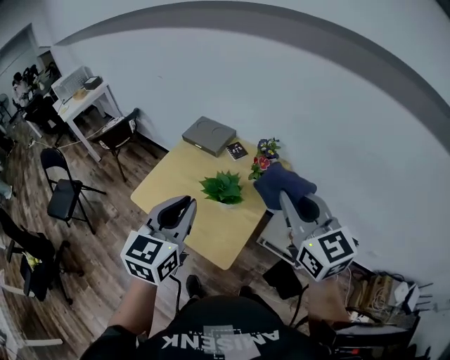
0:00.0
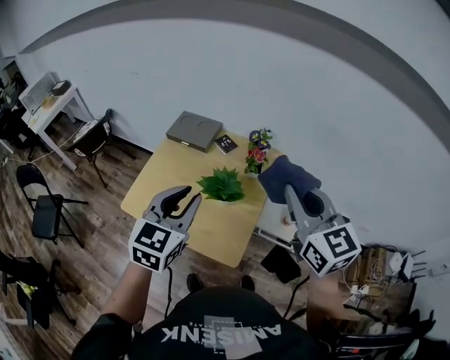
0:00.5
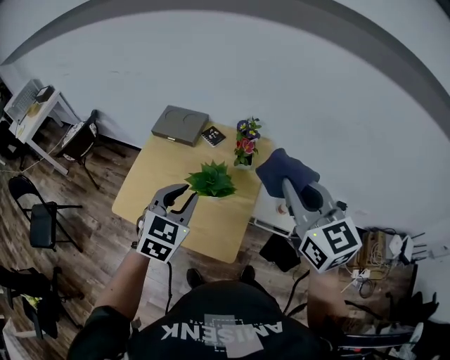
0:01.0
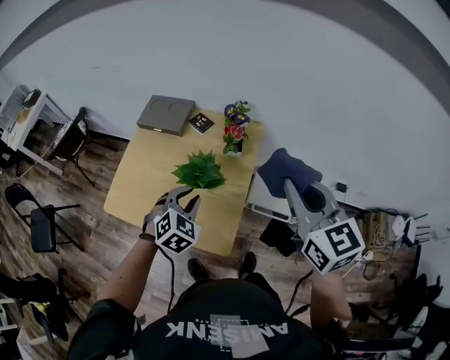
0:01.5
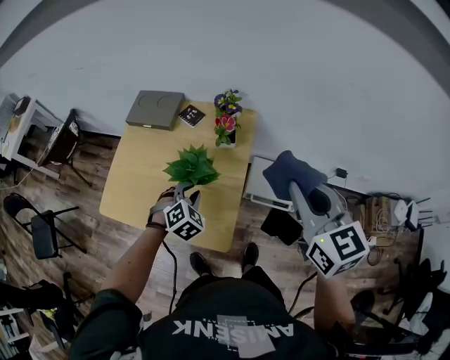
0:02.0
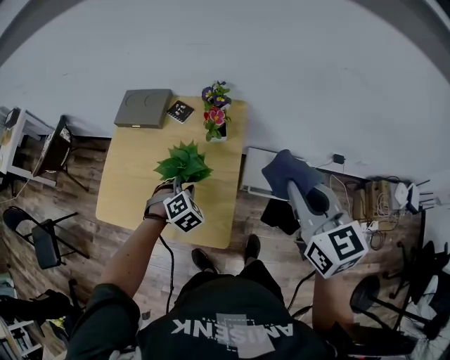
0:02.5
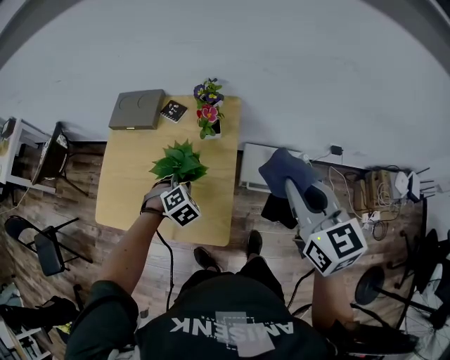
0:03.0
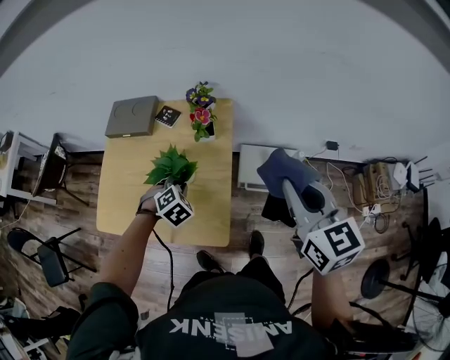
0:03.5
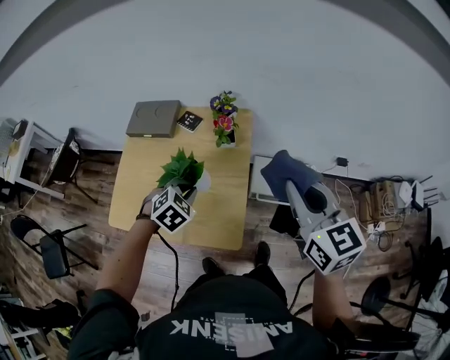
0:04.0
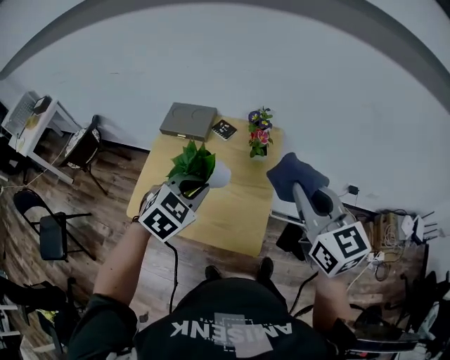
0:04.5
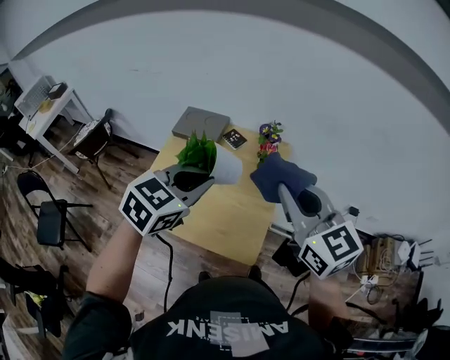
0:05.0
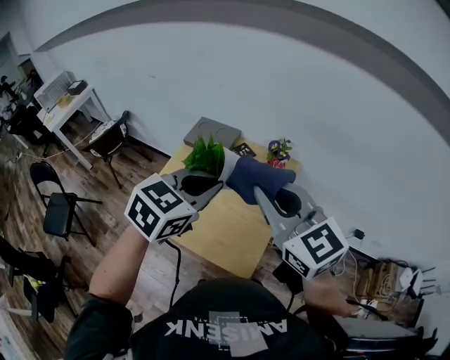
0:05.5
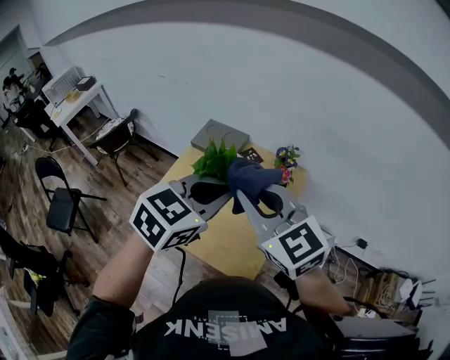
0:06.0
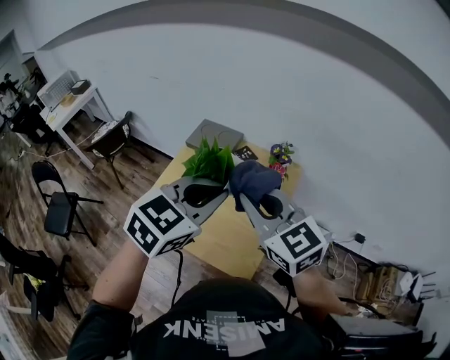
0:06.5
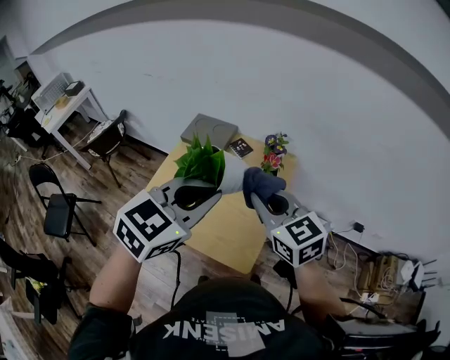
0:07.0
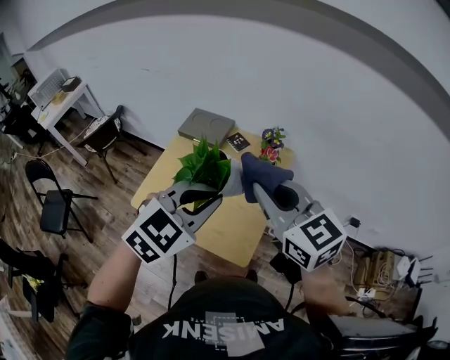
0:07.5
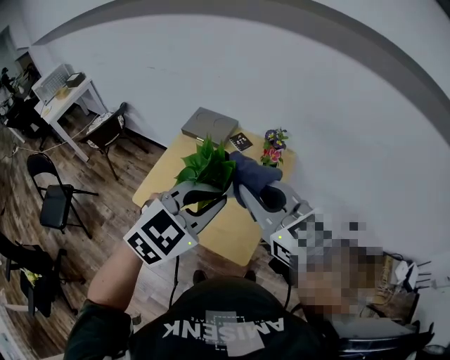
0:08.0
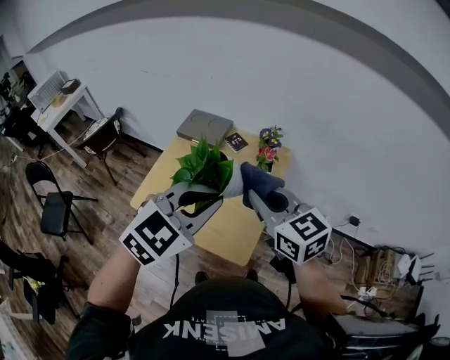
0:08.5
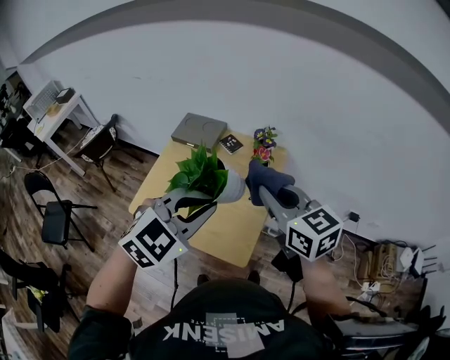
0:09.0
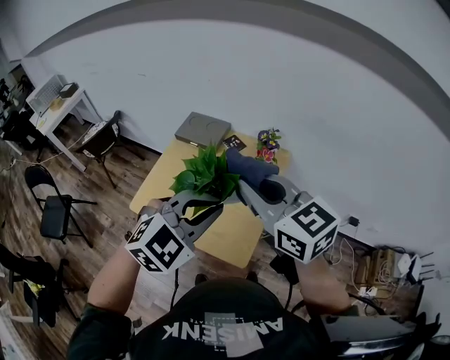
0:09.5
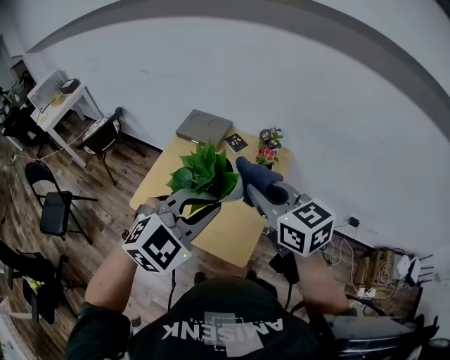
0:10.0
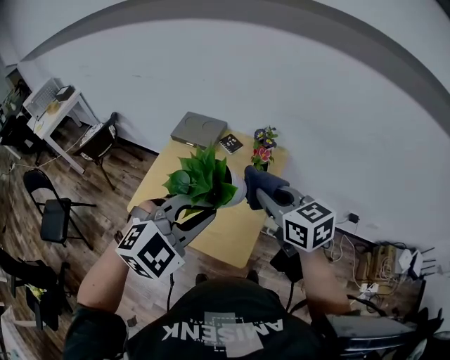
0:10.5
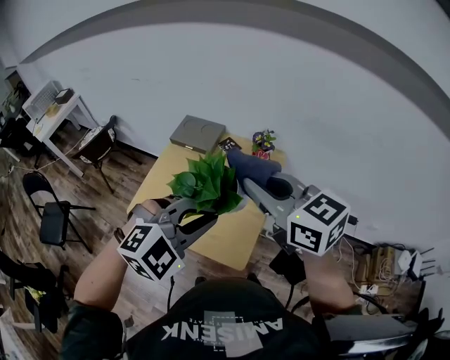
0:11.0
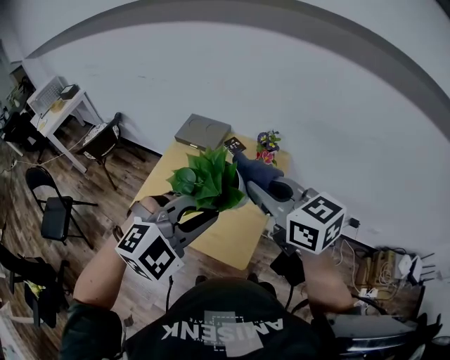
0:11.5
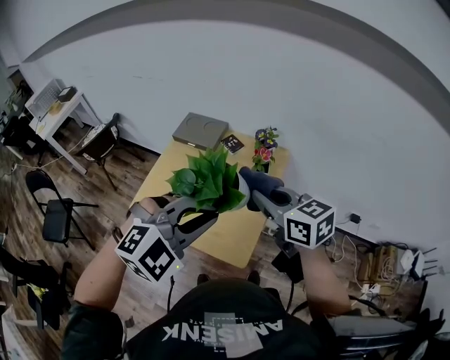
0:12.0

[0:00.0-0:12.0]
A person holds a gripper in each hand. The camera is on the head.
0:00.0 to 0:02.0: The left gripper is displaced downward by roughly 30 cm, and tips its fingers downward by roughly 40 degrees; the right gripper travels downward and to the right by roughly 10 cm, and rotates approximately 20 degrees.
0:02.0 to 0:04.0: The left gripper changes place by roughly 5 cm.
0:04.0 to 0:06.0: The left gripper goes about 25 cm upward, and turns by about 40 degrees. Meanwhile the right gripper is displaced to the left by about 25 cm, and turns by roughly 40 degrees.
0:06.0 to 0:08.0: Both grippers travel together backward, about 5 cm.
0:08.0 to 0:10.0: The right gripper changes place by approximately 5 cm.
0:10.0 to 0:12.0: The right gripper swings up and down, about 10 cm each way, with 2 reversals.

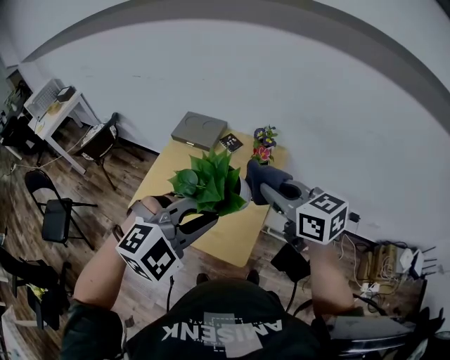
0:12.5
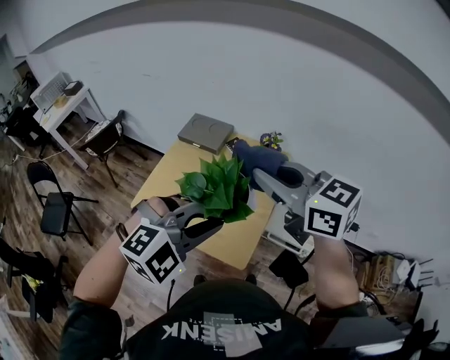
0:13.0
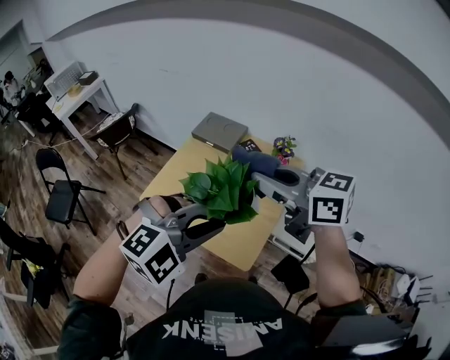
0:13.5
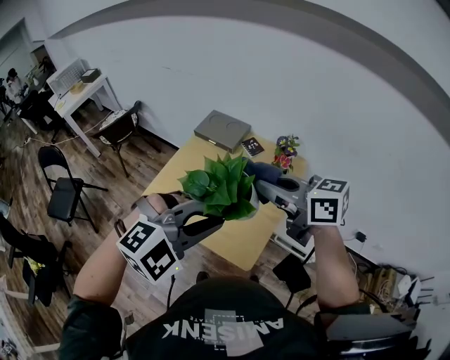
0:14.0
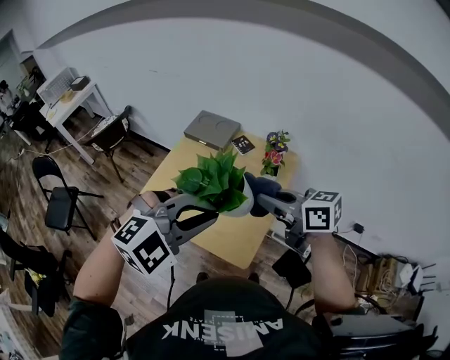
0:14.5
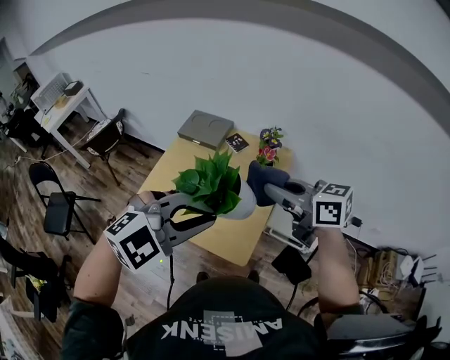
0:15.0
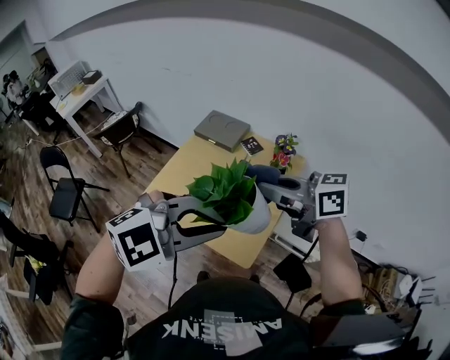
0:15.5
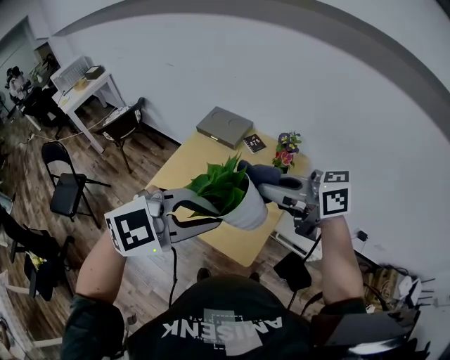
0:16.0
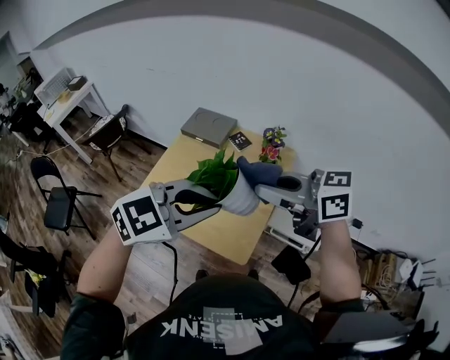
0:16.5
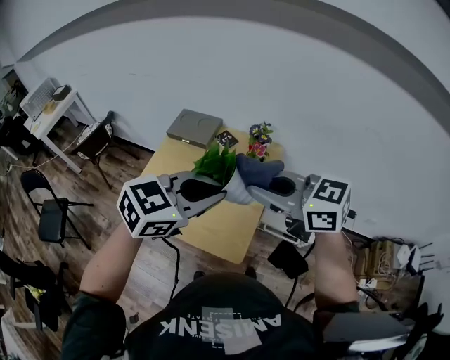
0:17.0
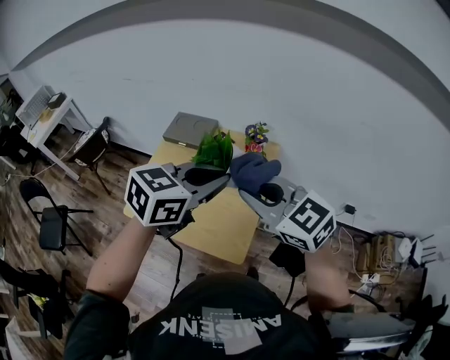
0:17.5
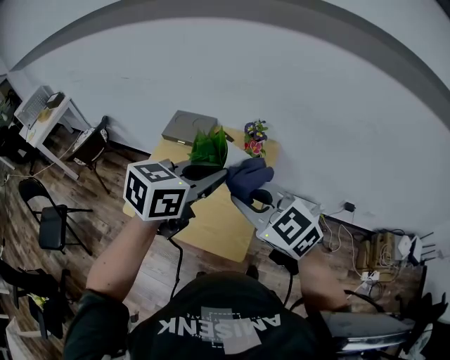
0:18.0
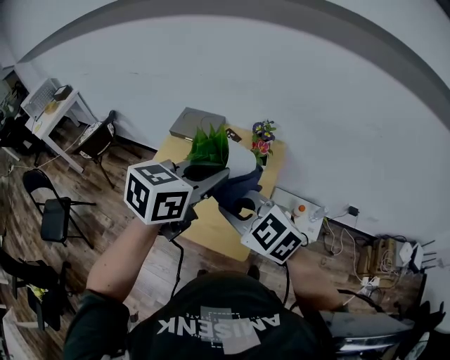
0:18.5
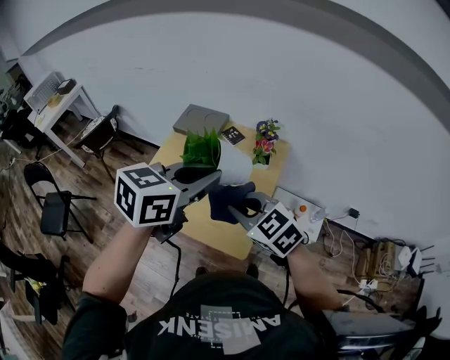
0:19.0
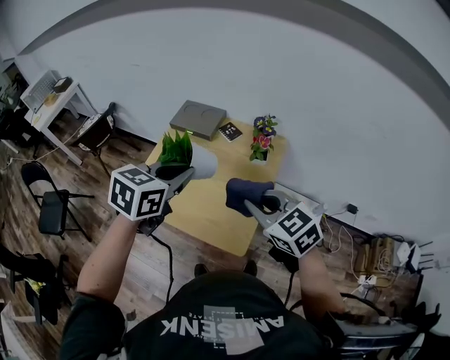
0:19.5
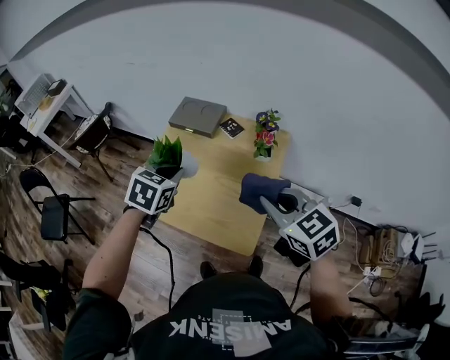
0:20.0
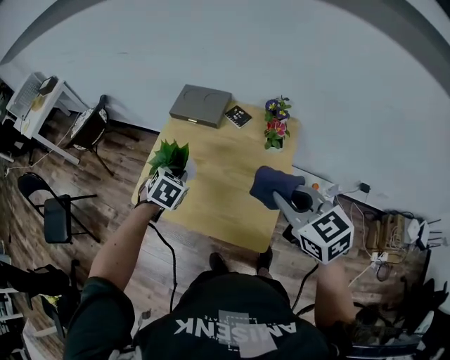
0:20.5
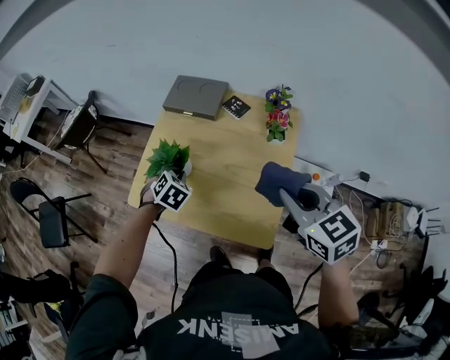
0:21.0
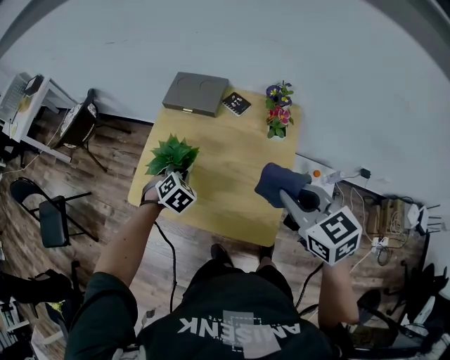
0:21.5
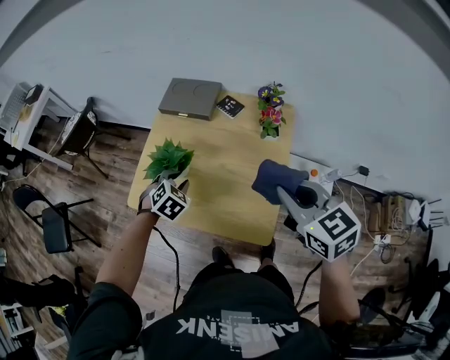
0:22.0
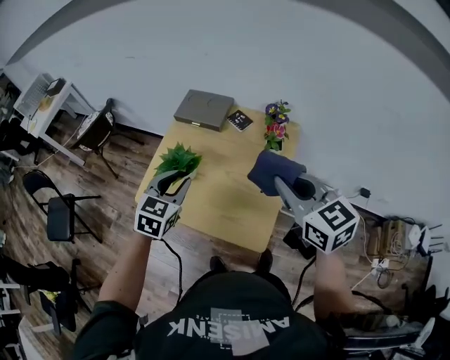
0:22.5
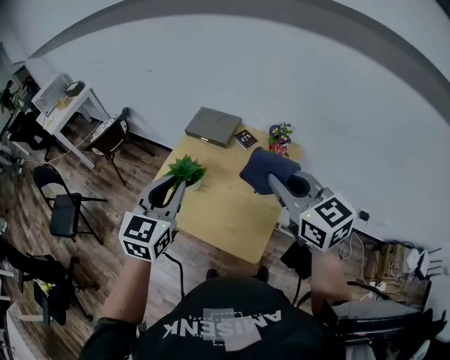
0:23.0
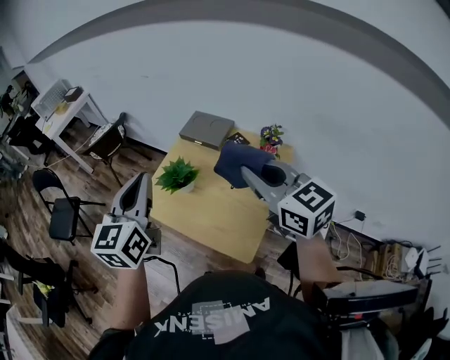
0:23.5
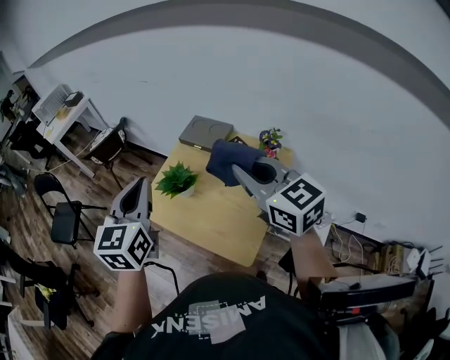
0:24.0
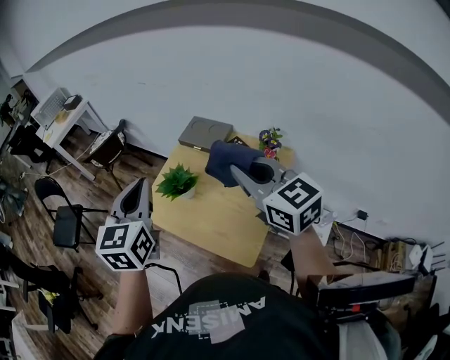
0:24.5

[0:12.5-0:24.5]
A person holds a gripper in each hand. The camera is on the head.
0:12.5 to 0:14.5: The right gripper goes upward and returns, approximately 10 cm each way, and changes its angle by roughly 20 degrees.
0:14.5 to 0:16.5: The left gripper changes its angle by some 30 degrees. Meanwhile the right gripper travels upward by about 10 cm.
0:16.5 to 0:18.5: The right gripper goes about 10 cm downward, and changes its angle by roughly 40 degrees. The left gripper moves approximately 5 cm, and changes its angle by approximately 30 degrees.
0:18.5 to 0:20.5: The right gripper is displaced to the right by some 5 cm, and swivels about 30 degrees. Meanwhile the left gripper shifts about 35 cm downward, to the left and forward, and points its fingers roughly 30 degrees further downward.
0:20.5 to 0:22.5: The left gripper shifts about 10 cm upward and backward, swivels about 30 degrees, and opens up.
0:22.5 to 0:24.5: The left gripper moves upward, roughly 20 cm, swivels approximately 40 degrees, and closes up, while the right gripper heads upward, covering approximately 10 cm.

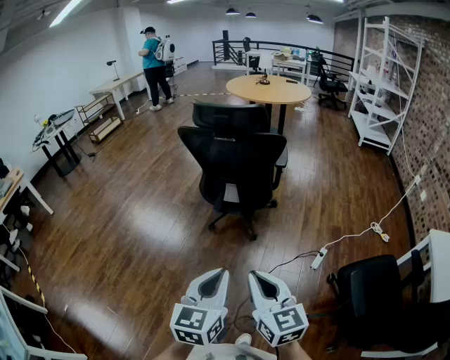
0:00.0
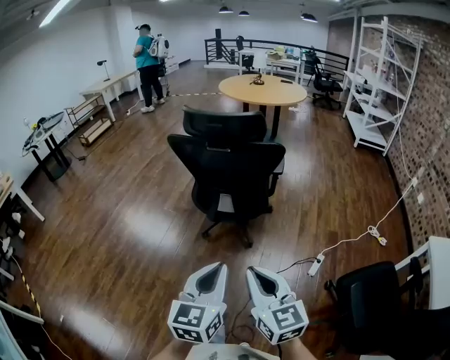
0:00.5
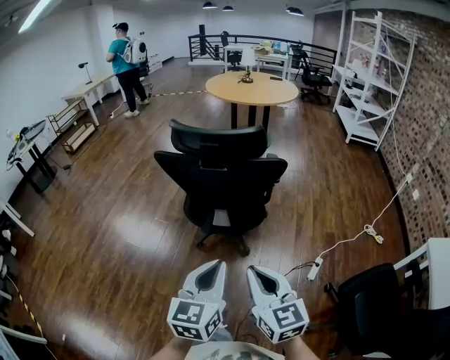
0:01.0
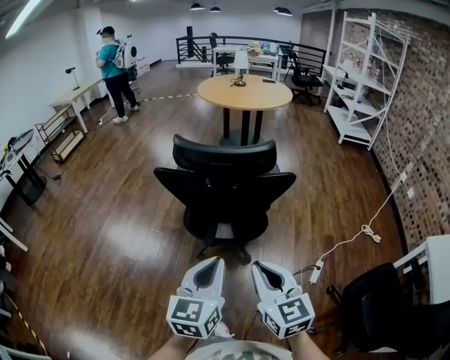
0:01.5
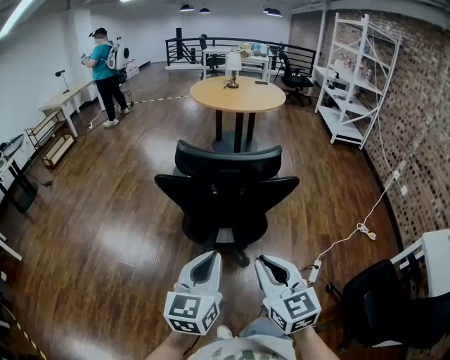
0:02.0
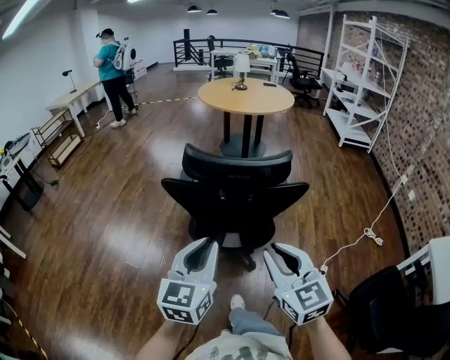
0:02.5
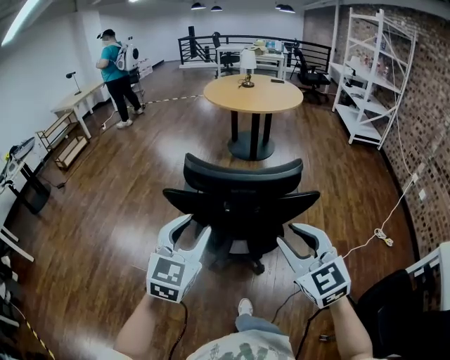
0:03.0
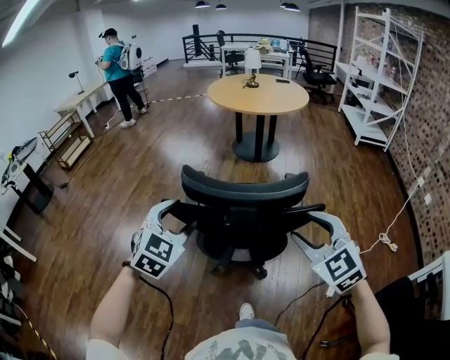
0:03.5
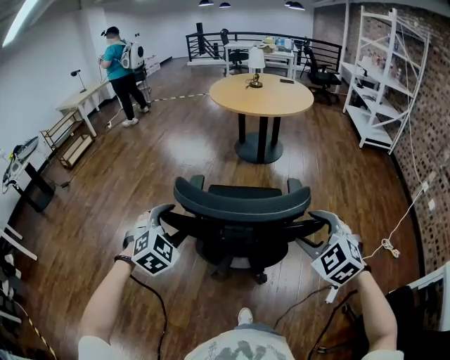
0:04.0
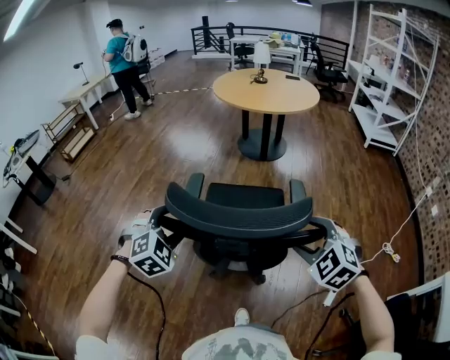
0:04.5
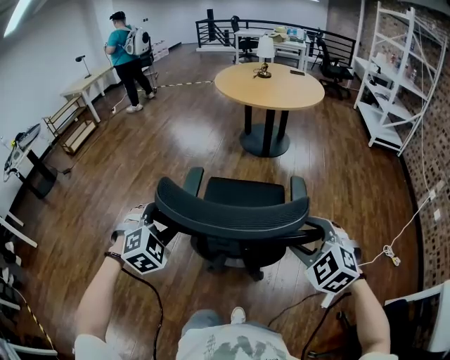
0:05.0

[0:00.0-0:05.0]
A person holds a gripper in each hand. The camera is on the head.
0:00.0 to 0:02.5: Both grippers move forward, about 35 cm.
0:02.5 to 0:05.0: The left gripper shifts about 25 cm forward, twists some 60 degrees clockwise, seen from behind, and opens up. The right gripper is displaced forward and to the right by roughly 25 cm, changes its angle by some 50 degrees, and opens its fingers.
